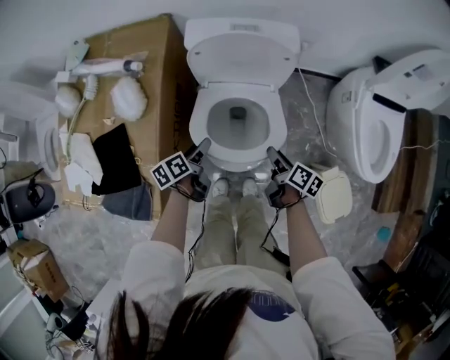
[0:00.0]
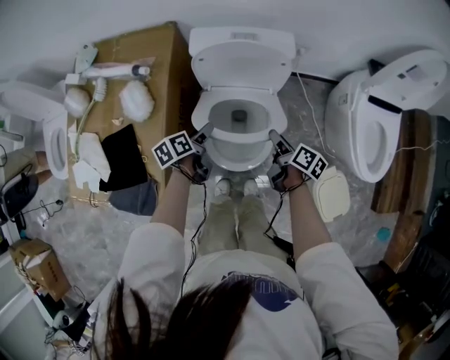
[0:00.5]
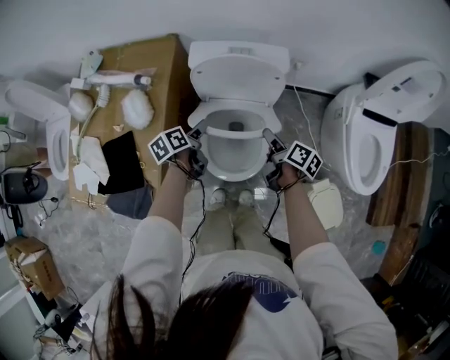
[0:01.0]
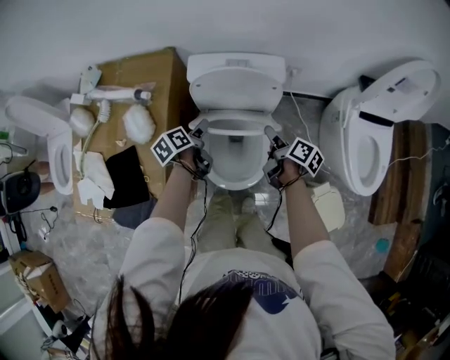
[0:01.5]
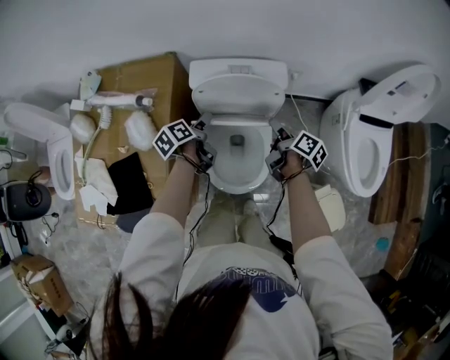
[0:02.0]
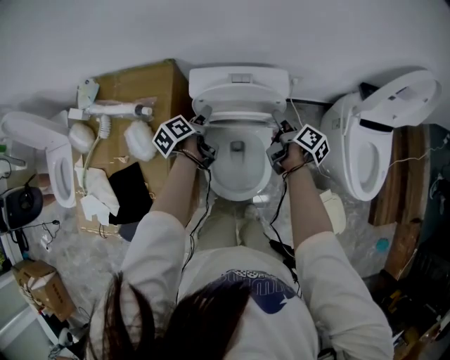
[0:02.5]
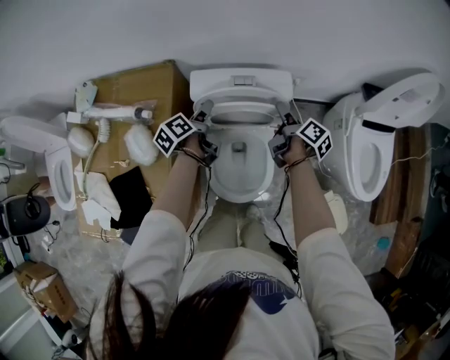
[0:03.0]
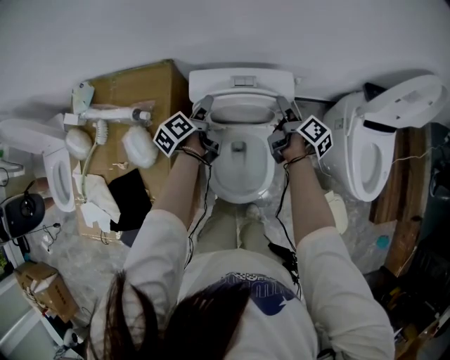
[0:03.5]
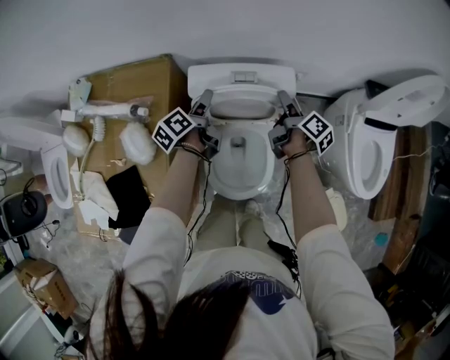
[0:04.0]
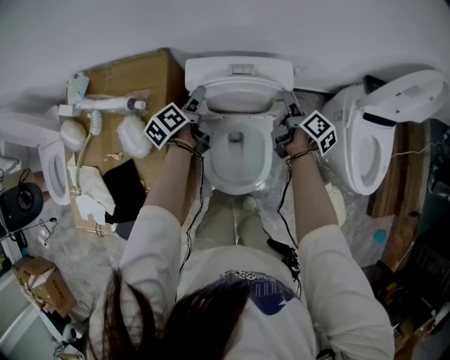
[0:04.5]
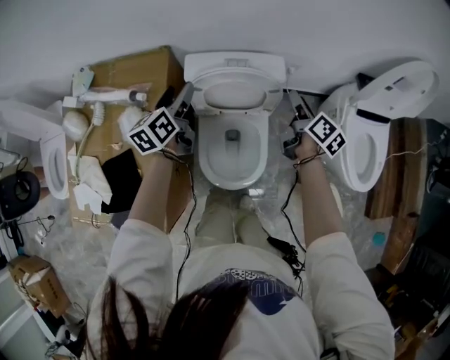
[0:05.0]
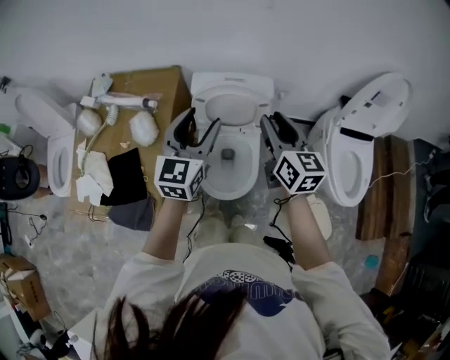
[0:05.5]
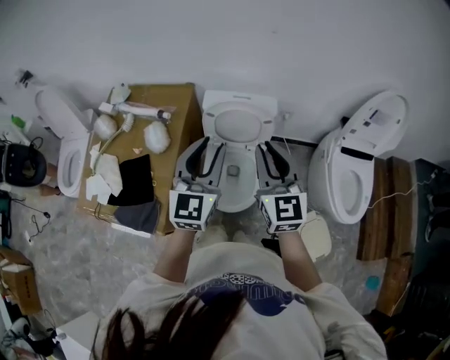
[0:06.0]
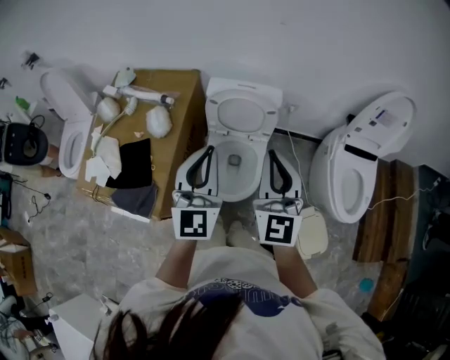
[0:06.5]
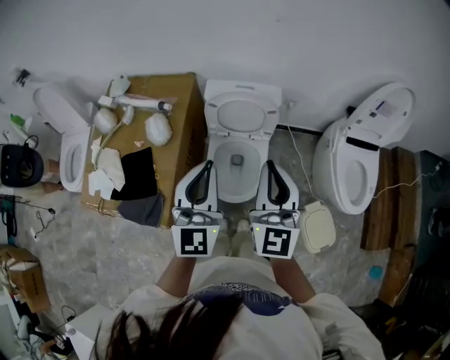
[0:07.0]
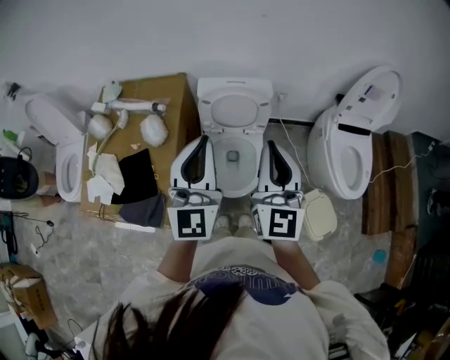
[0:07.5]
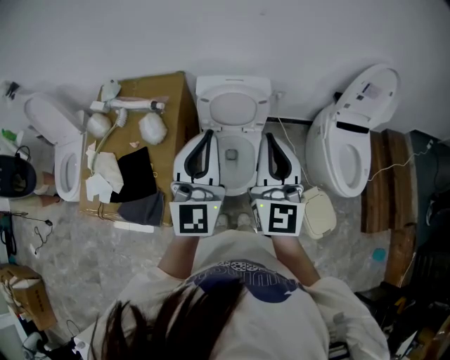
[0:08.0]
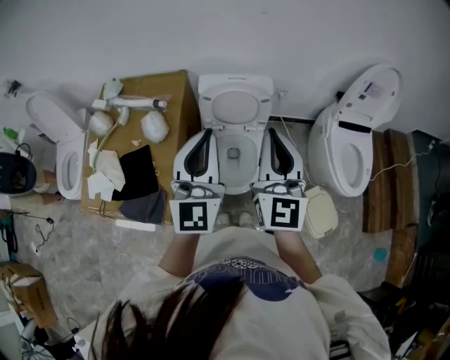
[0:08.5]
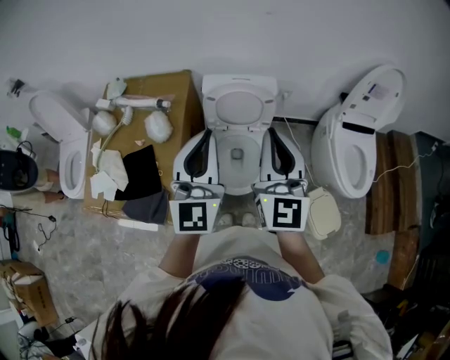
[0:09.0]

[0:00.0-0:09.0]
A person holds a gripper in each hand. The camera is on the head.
0:00.0 to 0:02.0: Both grippers move forward and upward, some 20 cm.
0:02.0 to 0:04.5: The two grippers go approximately 10 cm forward.
0:04.5 to 0:07.0: The left gripper moves backward and upward, approximately 50 cm, rotates around the line of its fingers by some 70 degrees, clockwise from behind, and closes; the right gripper travels upward and backward by approximately 50 cm, rotates around the line of its fingers by about 70 degrees, counterclockwise from behind, and closes up.
0:07.0 to 0:09.0: The grippers move only a little.

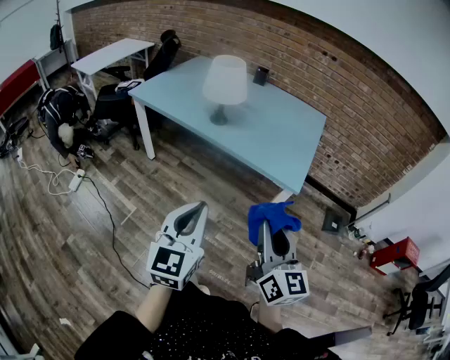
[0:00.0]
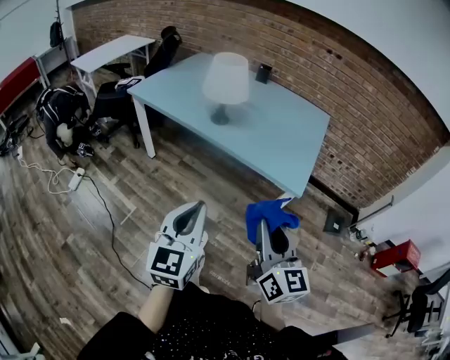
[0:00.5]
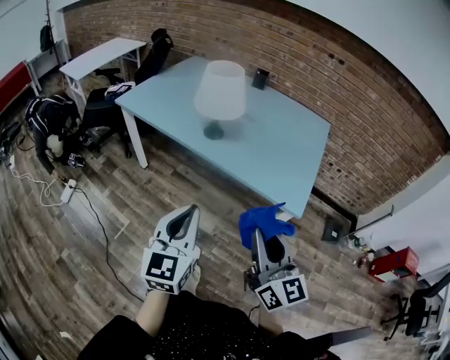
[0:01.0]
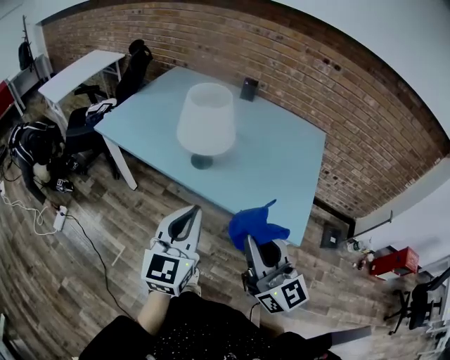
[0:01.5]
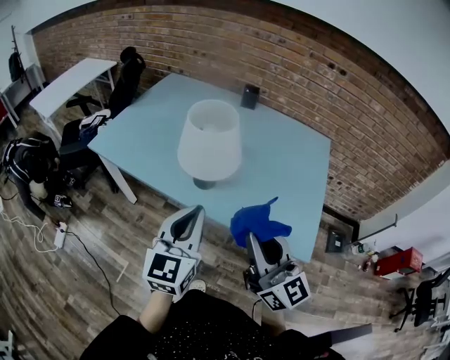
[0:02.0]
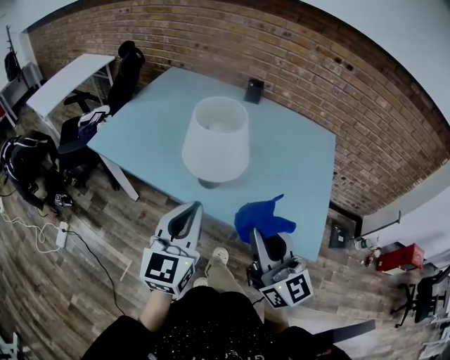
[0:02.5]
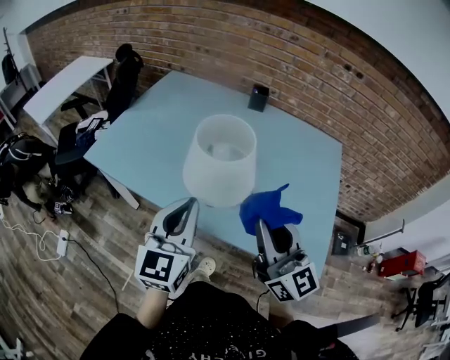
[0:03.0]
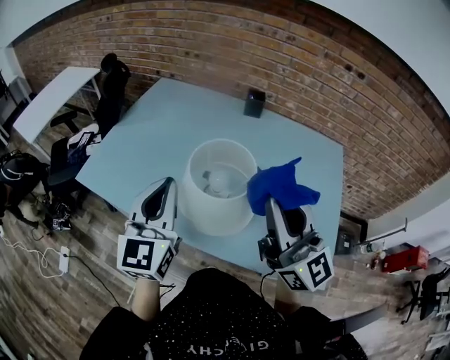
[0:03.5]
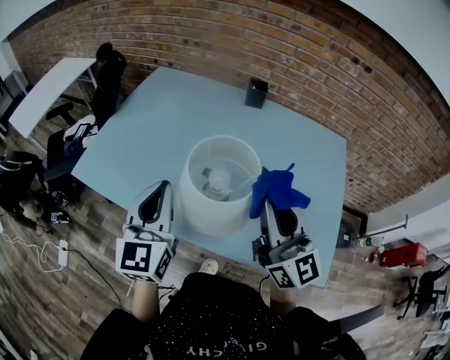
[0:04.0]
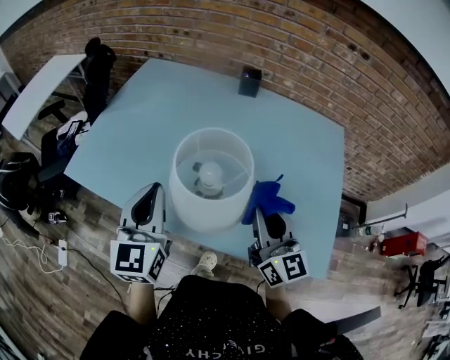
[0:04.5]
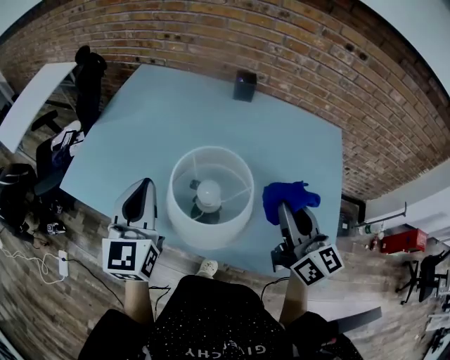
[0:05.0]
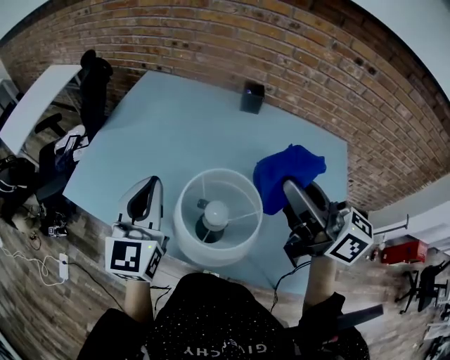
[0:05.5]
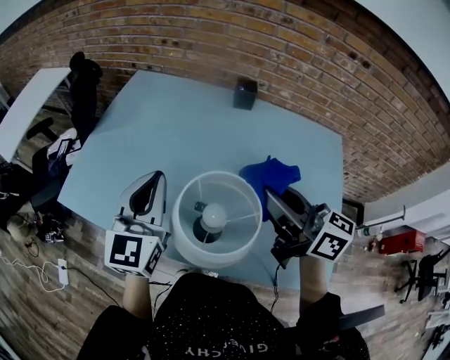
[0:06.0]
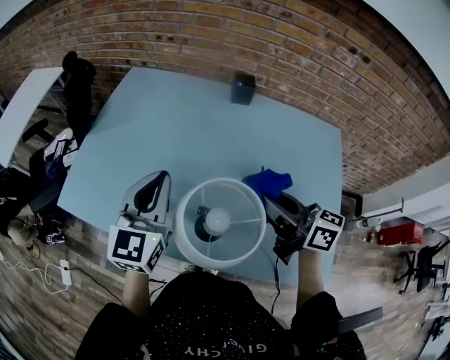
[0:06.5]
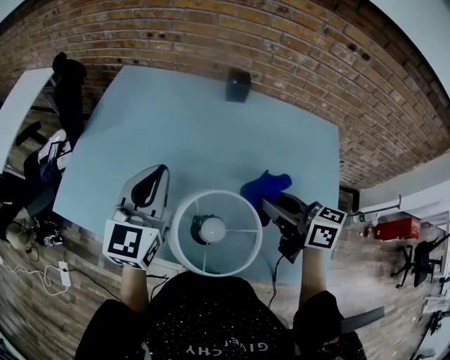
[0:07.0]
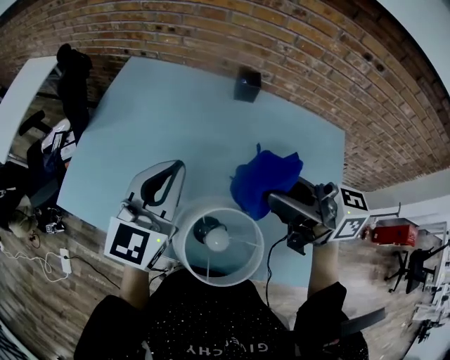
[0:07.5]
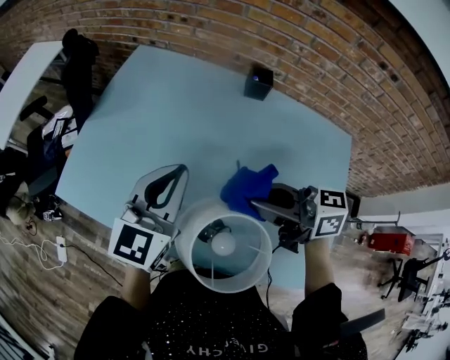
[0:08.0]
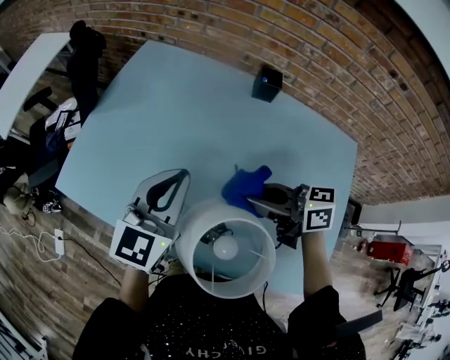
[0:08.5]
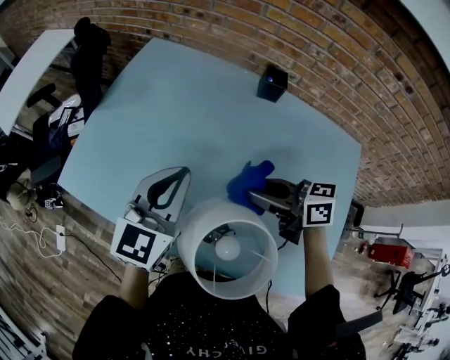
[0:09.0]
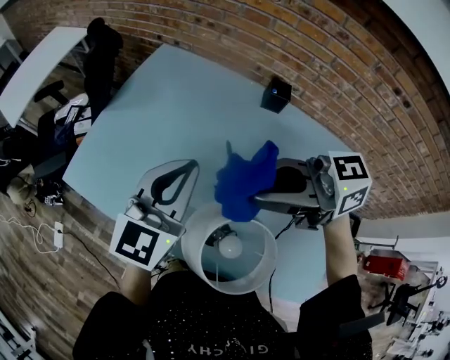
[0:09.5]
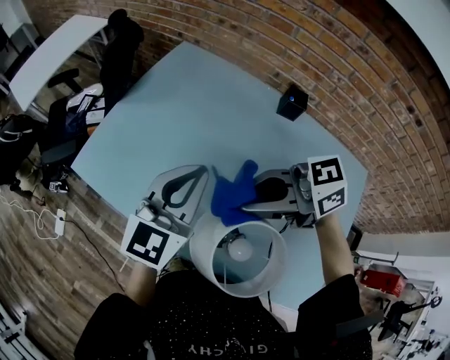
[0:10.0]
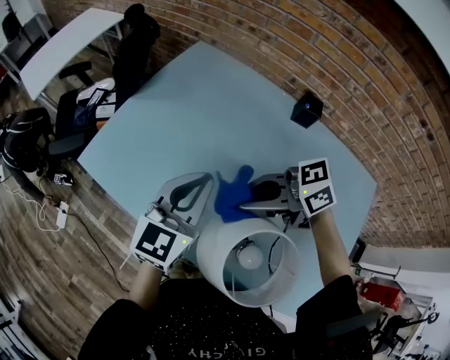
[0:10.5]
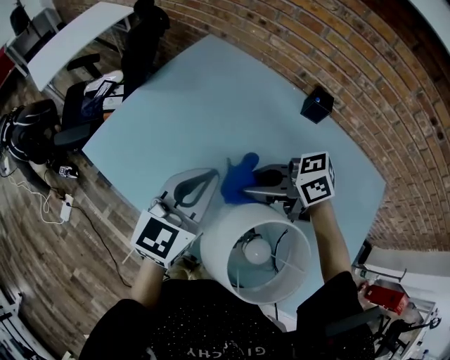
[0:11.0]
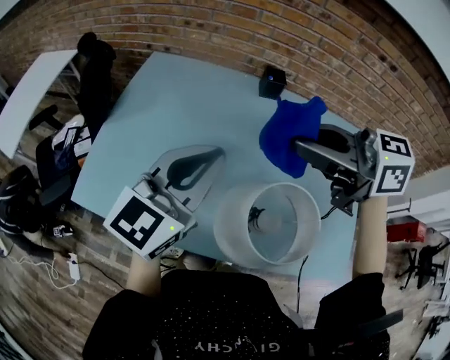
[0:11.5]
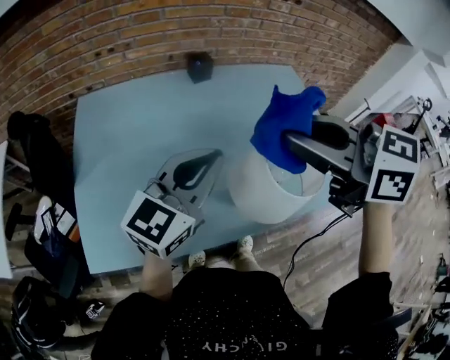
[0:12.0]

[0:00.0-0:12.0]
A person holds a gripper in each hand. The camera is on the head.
0:00.0 to 0:02.0: The grippers both shift forward by some 40 cm.
0:02.0 to 0:04.0: The grippers both shift forward by about 25 cm.
0:04.0 to 0:06.0: The left gripper shifts roughly 10 cm forward. Meanwhile the right gripper swings up and down, roughly 15 cm each way, with 2 reversals, and swivels some 40 degrees.
0:06.0 to 0:08.0: The right gripper moves up and down over roughly 15 cm, changing direction 2 times, and swivels approximately 30 degrees; the left gripper moves forward, roughly 5 cm.
0:08.0 to 0:10.0: The right gripper goes up and down, about 15 cm each way, reversing 2 times, and changes its angle by about 40 degrees.
0:10.0 to 0:12.0: The left gripper moves approximately 5 cm downward and comes back, and changes its angle by approximately 50 degrees. The right gripper moves upward, some 10 cm, and turns by approximately 80 degrees.

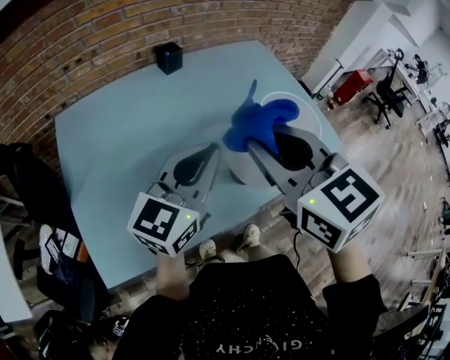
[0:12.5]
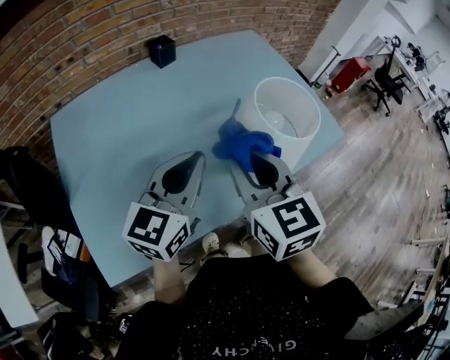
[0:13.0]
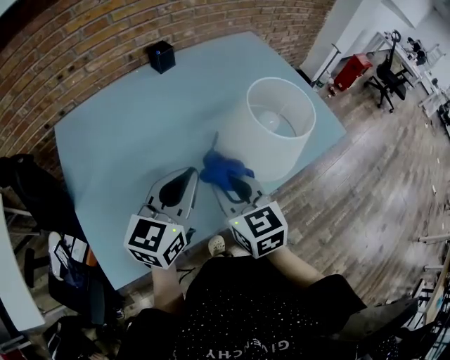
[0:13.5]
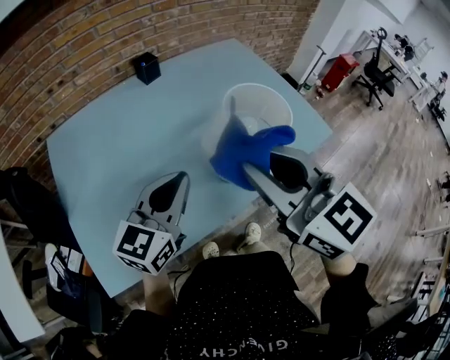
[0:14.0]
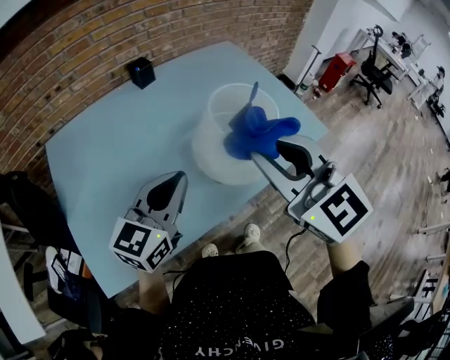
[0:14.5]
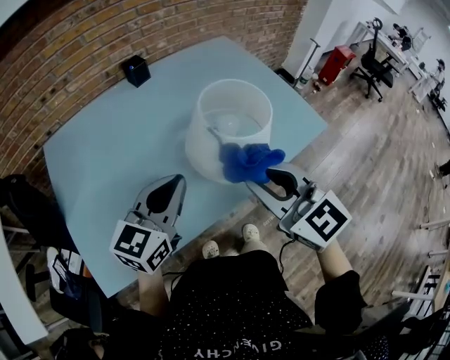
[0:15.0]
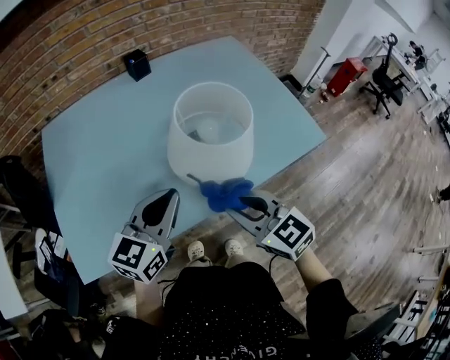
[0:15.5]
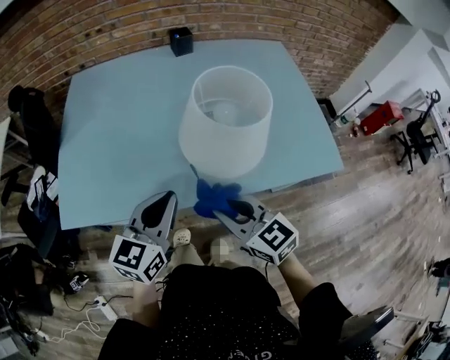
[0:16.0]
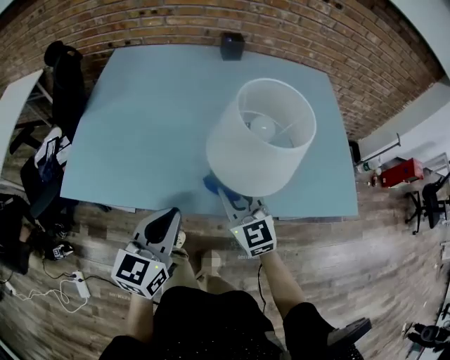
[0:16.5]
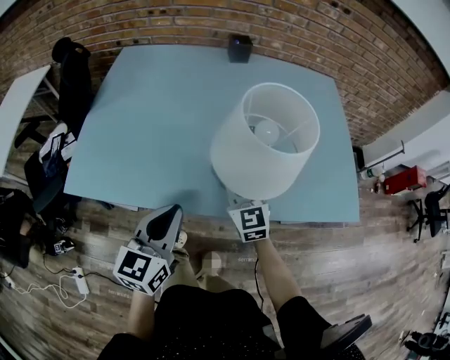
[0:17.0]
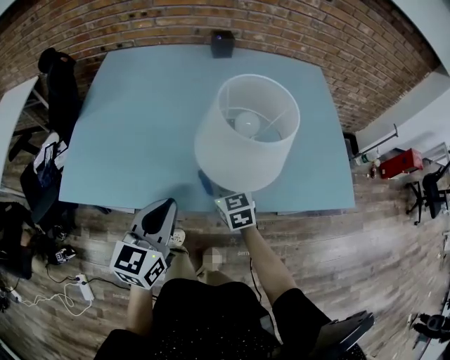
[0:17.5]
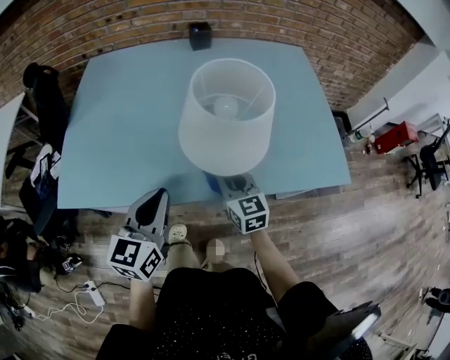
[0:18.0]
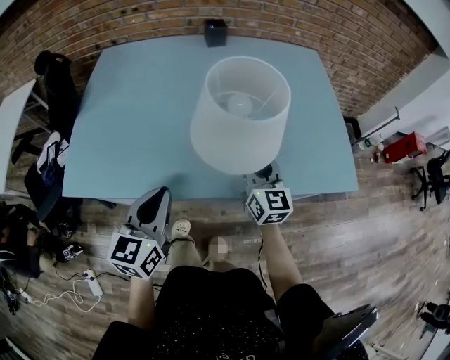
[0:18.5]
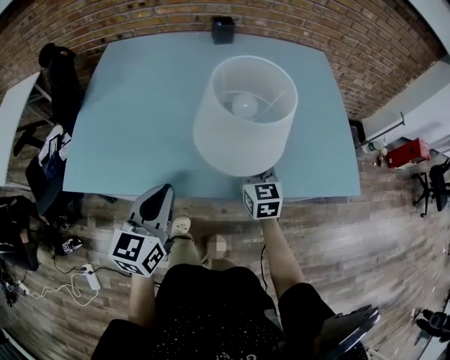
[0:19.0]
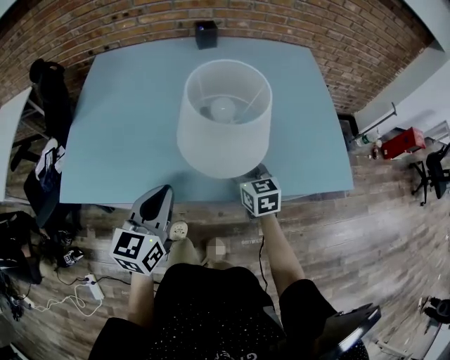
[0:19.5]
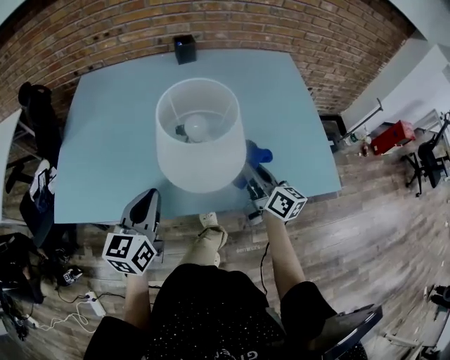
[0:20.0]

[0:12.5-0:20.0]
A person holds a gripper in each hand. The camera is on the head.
0:12.5 to 0:14.5: The left gripper shifts by some 5 cm; the right gripper travels to the right by roughly 10 cm, and moves about 20 cm downward and comes back.
0:14.5 to 0:16.5: The right gripper heads downward, covering some 25 cm, and turns by approximately 20 degrees. The left gripper changes place by some 15 cm, and rotates some 40 degrees.
0:16.5 to 0:18.0: The right gripper goes about 10 cm downward and to the right, and turns by about 20 degrees.
0:18.0 to 0:20.0: The right gripper moves to the right, some 15 cm, and turns by approximately 40 degrees; the left gripper moves approximately 5 cm.
